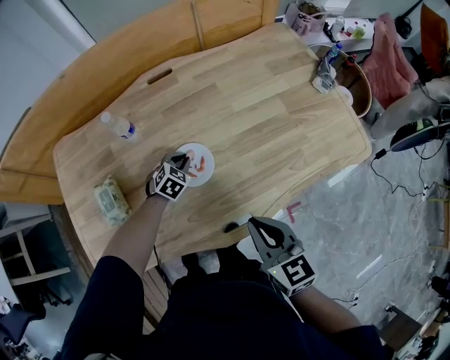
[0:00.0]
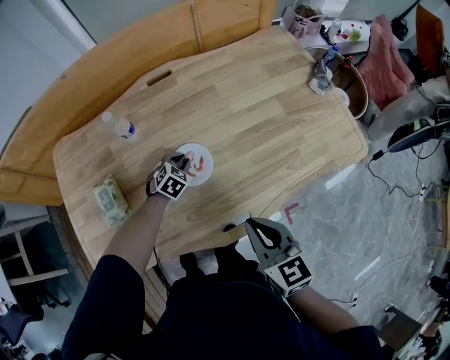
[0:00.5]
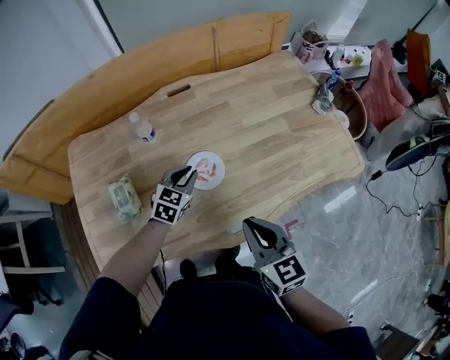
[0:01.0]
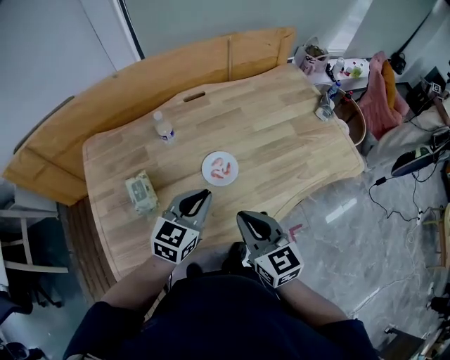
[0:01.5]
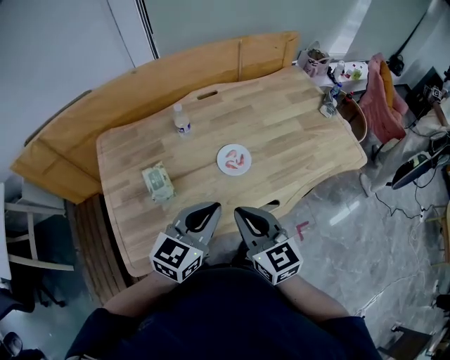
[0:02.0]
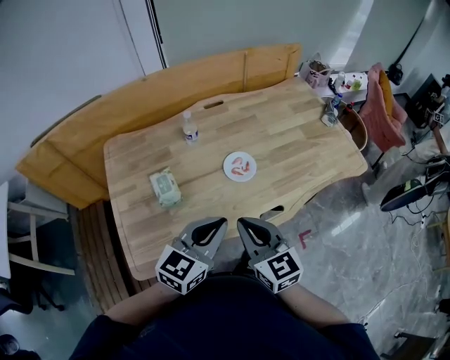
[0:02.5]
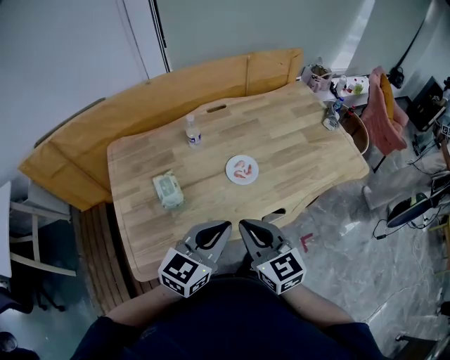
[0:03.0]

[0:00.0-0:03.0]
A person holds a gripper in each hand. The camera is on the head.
0:00.0 to 0:01.5: The left gripper moves upward and backward, about 35 cm, and tips its fingers upward by roughly 30 degrees. The right gripper moves to the left and upward, approximately 15 cm.
0:01.5 to 0:03.0: The right gripper goes approximately 10 cm backward and to the left; the left gripper moves backward and upward, roughly 15 cm.

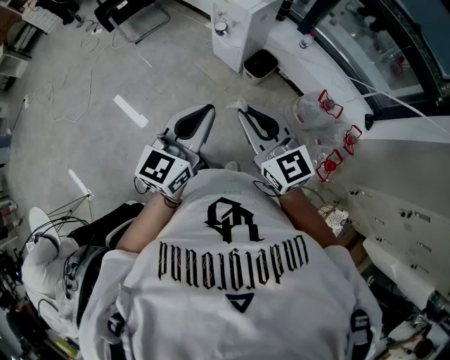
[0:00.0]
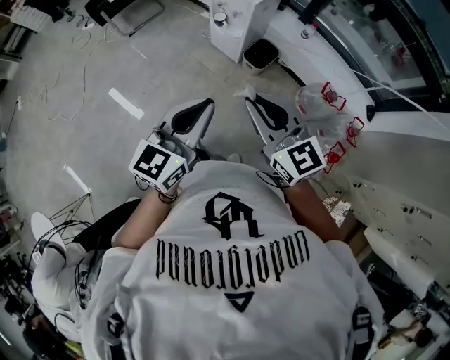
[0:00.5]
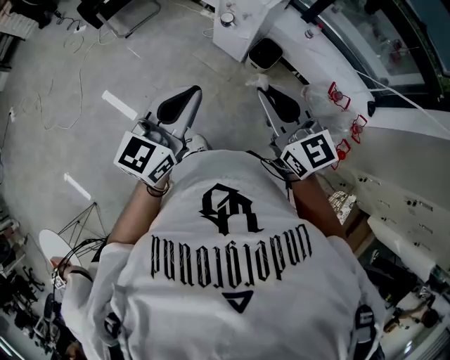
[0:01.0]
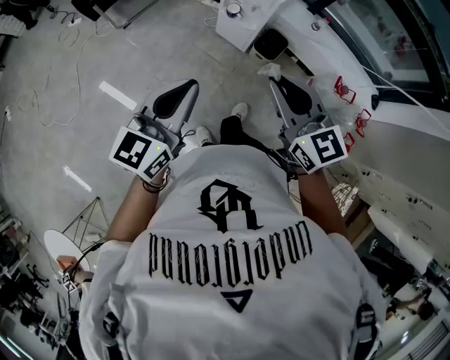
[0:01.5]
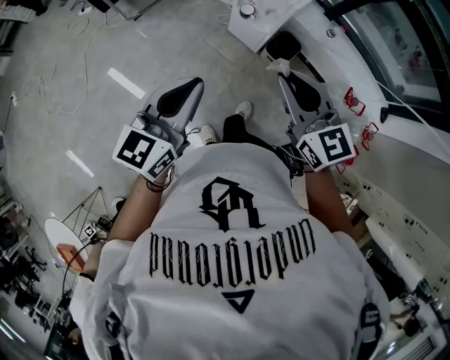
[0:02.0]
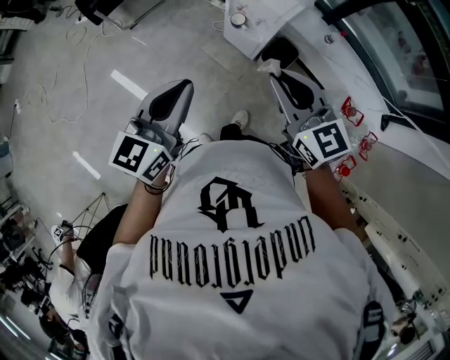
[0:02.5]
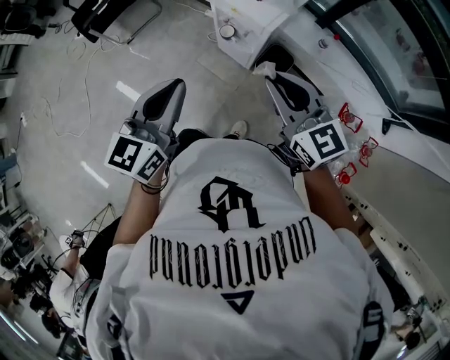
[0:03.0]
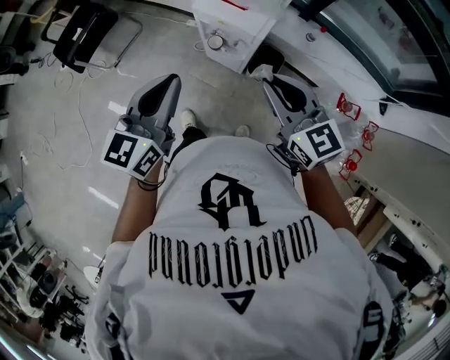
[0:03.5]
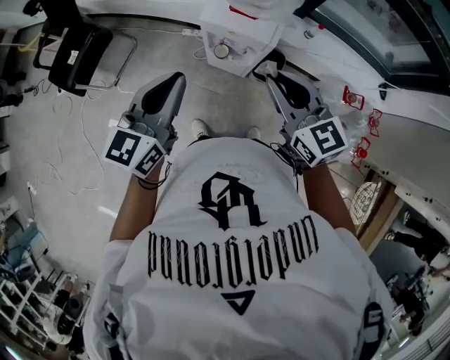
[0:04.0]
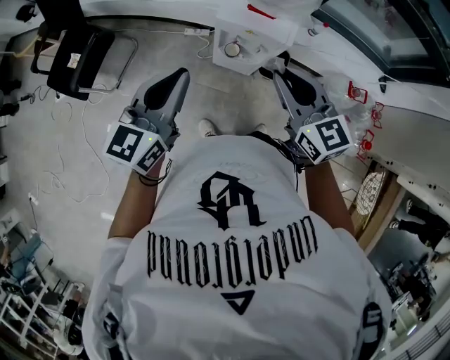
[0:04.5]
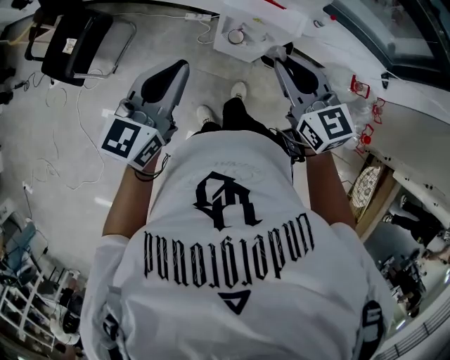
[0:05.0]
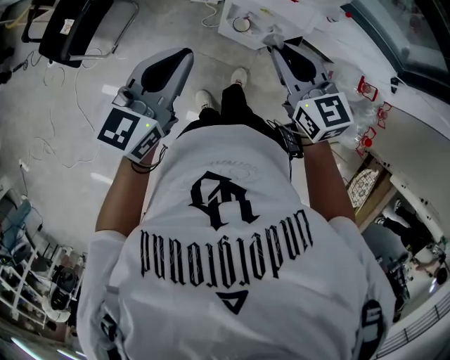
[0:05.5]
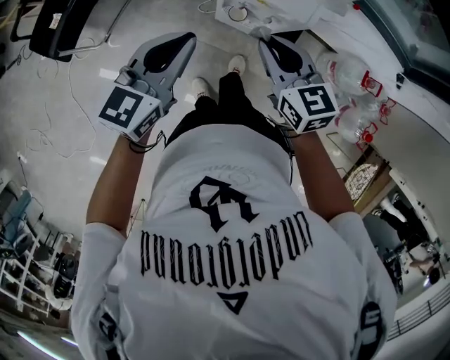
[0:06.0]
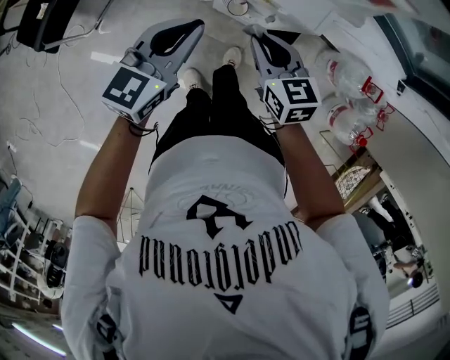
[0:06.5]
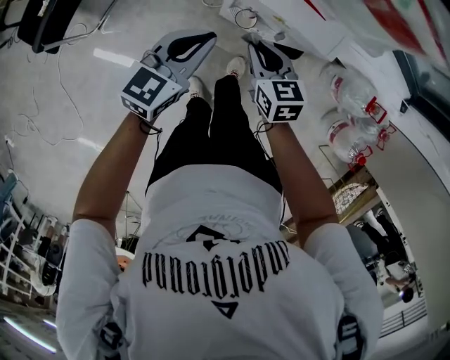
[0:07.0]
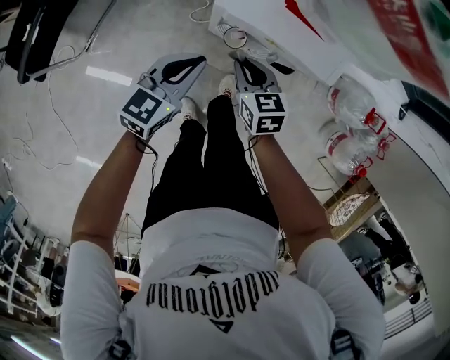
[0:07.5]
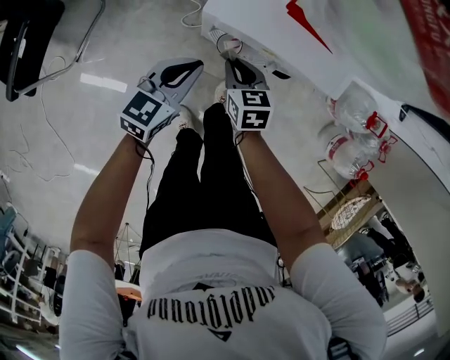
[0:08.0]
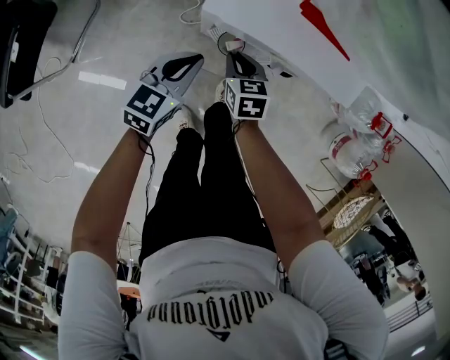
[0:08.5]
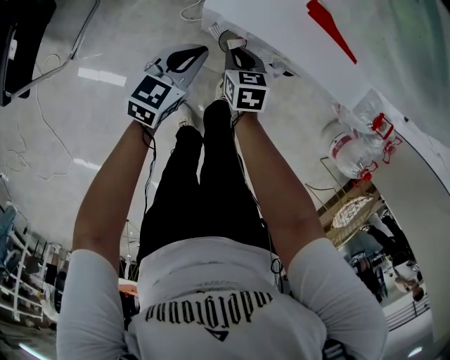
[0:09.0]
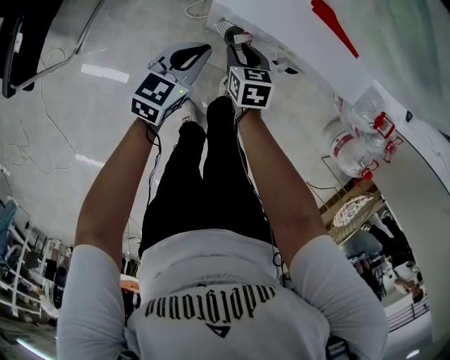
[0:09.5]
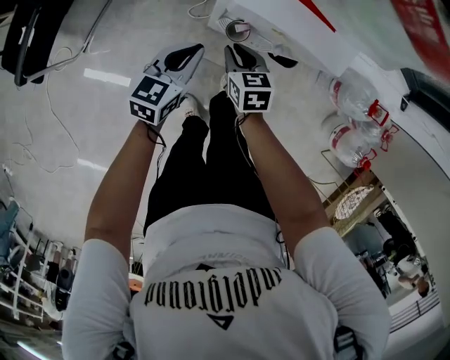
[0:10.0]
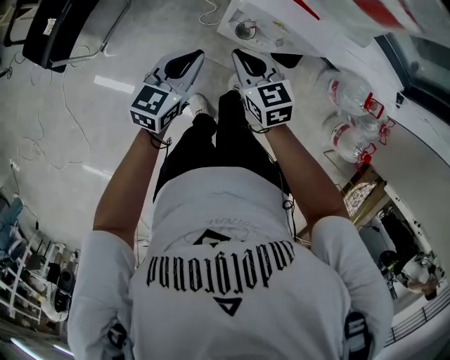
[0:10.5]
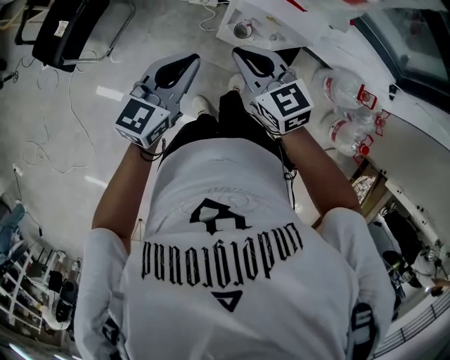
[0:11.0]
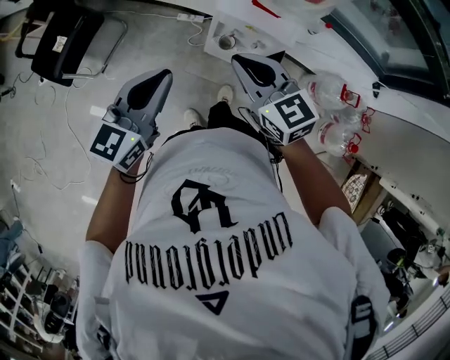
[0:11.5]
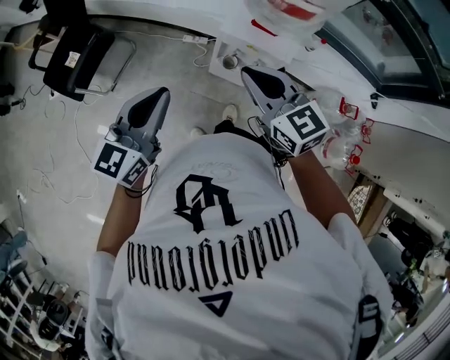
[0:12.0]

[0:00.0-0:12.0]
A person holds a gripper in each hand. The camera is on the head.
0:00.0 to 0:02.0: The right gripper goes approximately 25 cm forward and to the left. The left gripper shifts approximately 30 cm to the left and forward.
0:02.0 to 0:04.0: The grippers both shift forward by roughly 30 cm.
0:04.0 to 0:06.0: The right gripper heads downward, forward and to the left, covering about 20 cm. The left gripper heads downward and forward, covering approximately 15 cm.
0:06.0 to 0:08.0: Both grippers travel together downward, approximately 35 cm. The right gripper changes its angle by roughly 20 degrees.
0:08.0 to 0:10.0: The right gripper travels downward and back again, some 5 cm each way. The left gripper goes downward and returns, approximately 5 cm each way.
0:10.0 to 0:12.0: The right gripper is displaced upward by some 50 cm, and swivels approximately 40 degrees. Meanwhile the left gripper heads upward and backward, covering approximately 40 cm, and turns by about 20 degrees.

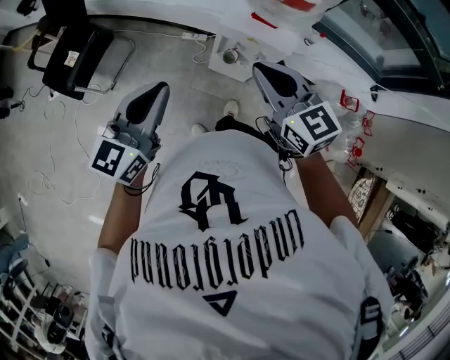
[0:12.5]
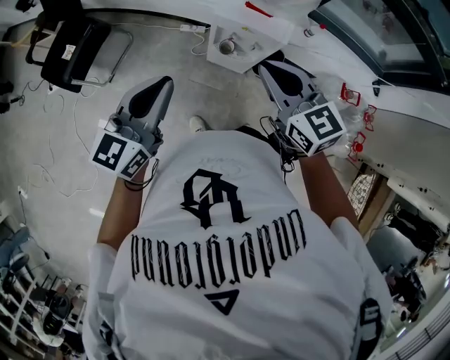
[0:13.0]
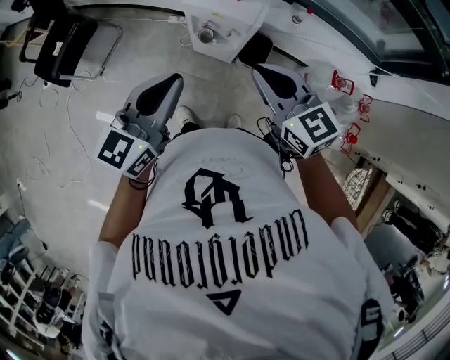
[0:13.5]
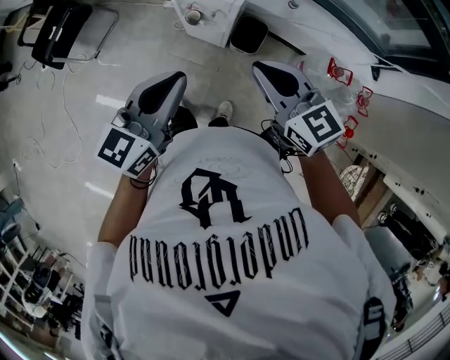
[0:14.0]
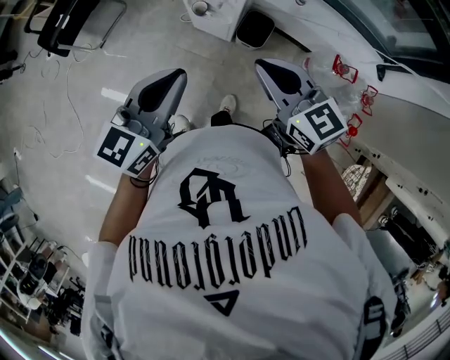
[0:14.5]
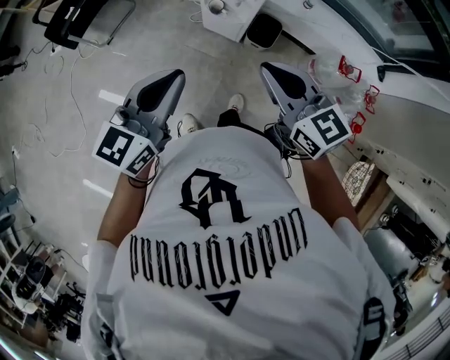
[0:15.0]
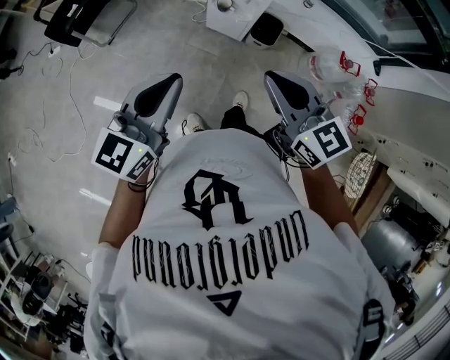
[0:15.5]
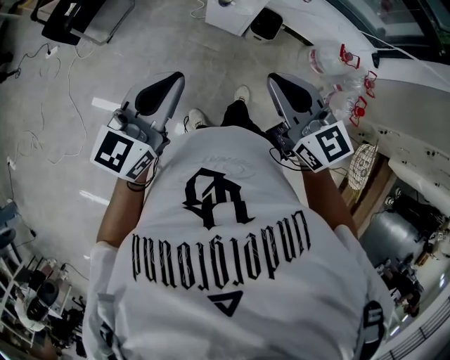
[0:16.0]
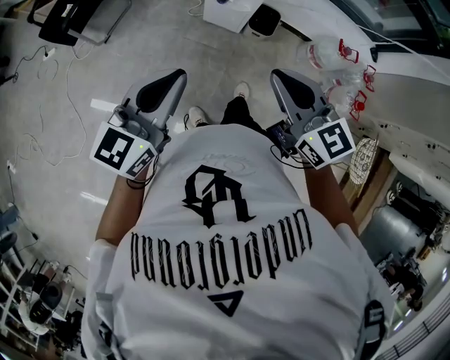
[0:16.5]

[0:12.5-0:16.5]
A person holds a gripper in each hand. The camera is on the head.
0:12.5 to 0:14.5: The two grippers go roughly 30 cm to the right and backward.
0:14.5 to 0:16.5: Both grippers travel together to the left and backward, approximately 25 cm.

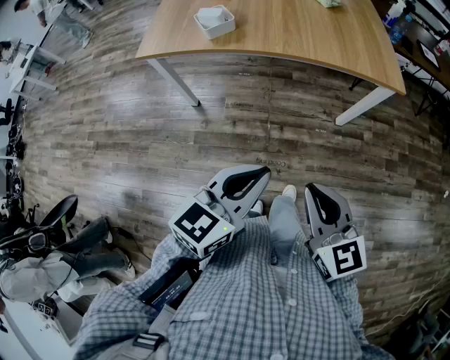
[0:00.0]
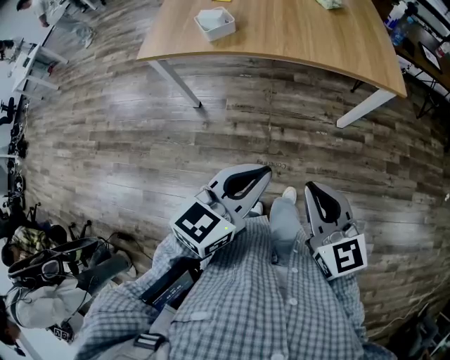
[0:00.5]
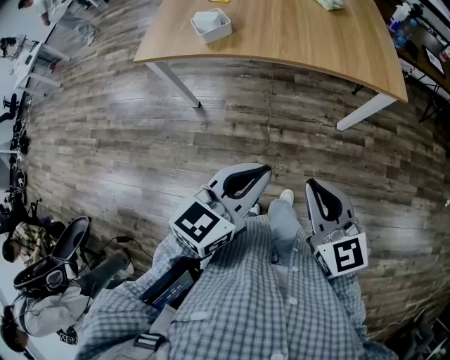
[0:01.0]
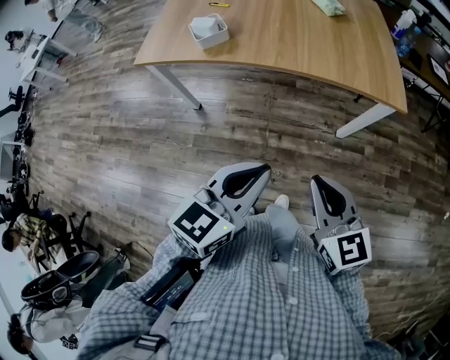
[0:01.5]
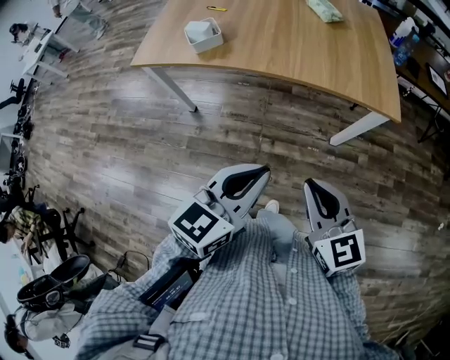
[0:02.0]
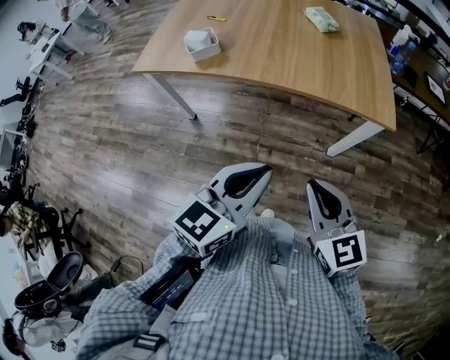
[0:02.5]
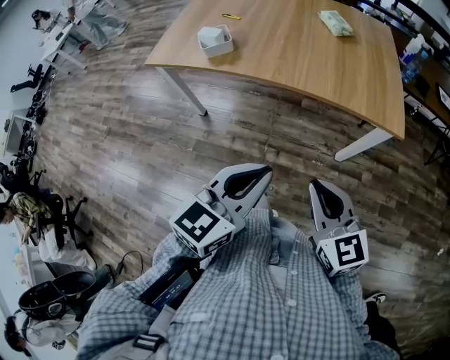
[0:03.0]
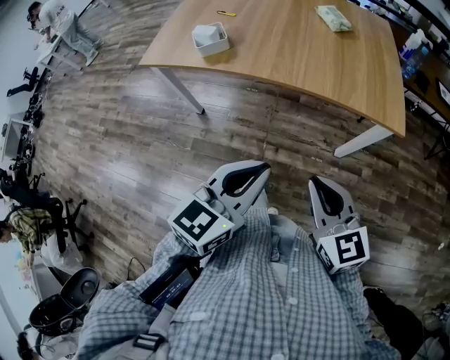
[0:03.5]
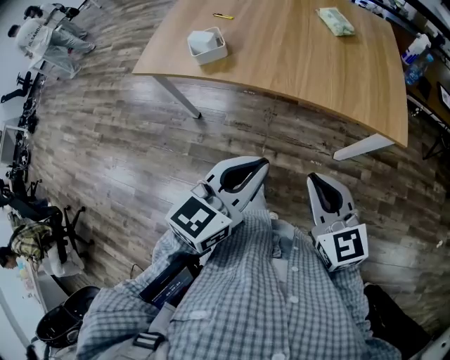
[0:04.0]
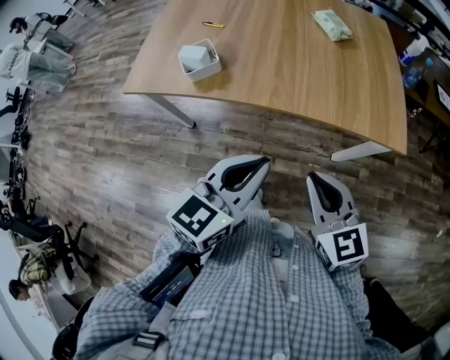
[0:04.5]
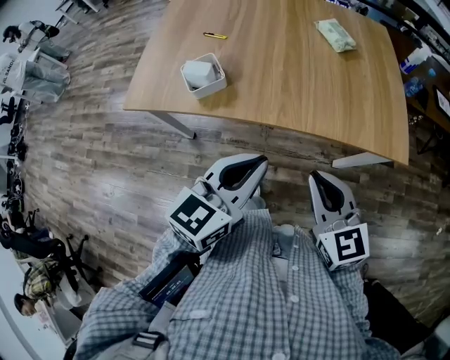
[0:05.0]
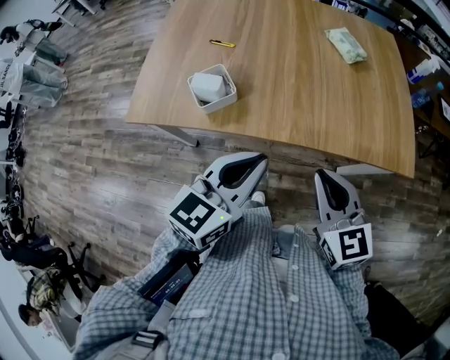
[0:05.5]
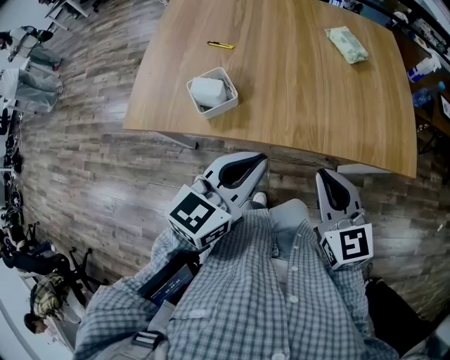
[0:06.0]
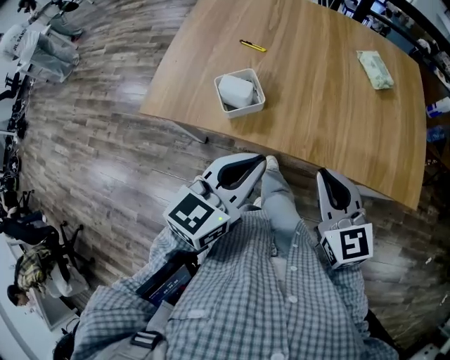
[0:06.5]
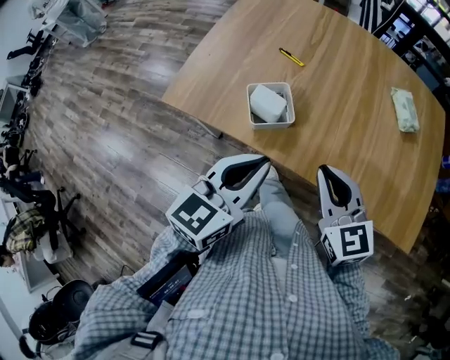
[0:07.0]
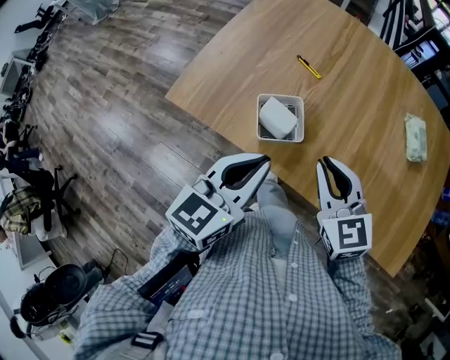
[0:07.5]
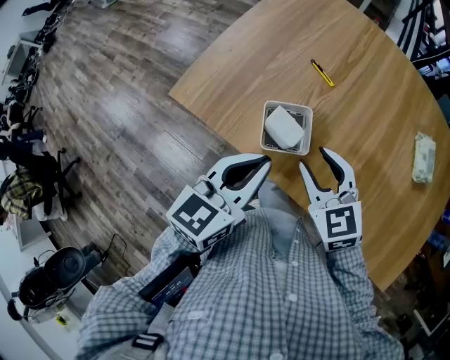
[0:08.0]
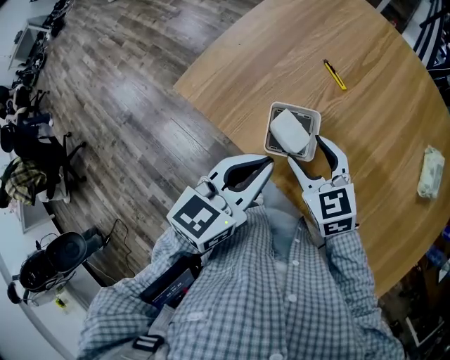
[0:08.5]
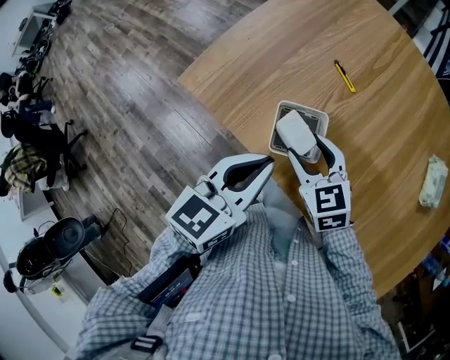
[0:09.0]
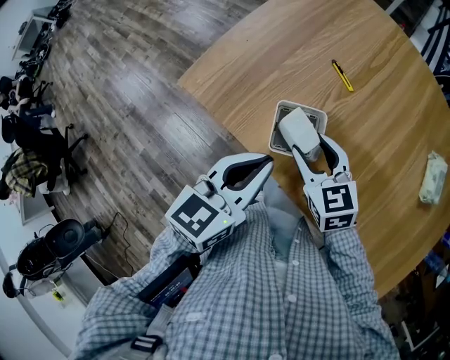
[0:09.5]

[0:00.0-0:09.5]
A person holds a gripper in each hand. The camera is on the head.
0:00.0 to 0:02.0: The left gripper shifts some 15 cm to the right and forward. Meanwhile the right gripper goes some 15 cm forward and to the right.
0:02.0 to 0:04.0: The grippers both shift forward by some 10 cm.
0:04.0 to 0:05.5: Both grippers travel together forward and to the left, some 20 cm.
0:05.5 to 0:07.5: The right gripper is displaced forward and to the left by approximately 25 cm, and changes its angle by roughly 20 degrees, while the left gripper travels to the left and forward by about 15 cm, and turns by roughly 20 degrees.
0:07.5 to 0:09.5: The right gripper travels downward, forward and to the left by roughly 15 cm, and opens up. The left gripper shifts by about 5 cm.
